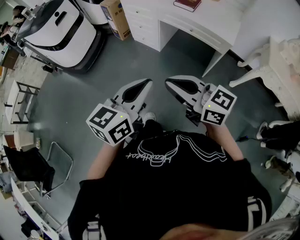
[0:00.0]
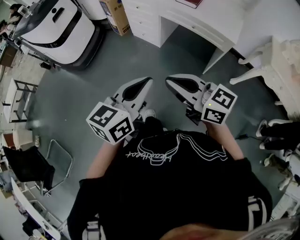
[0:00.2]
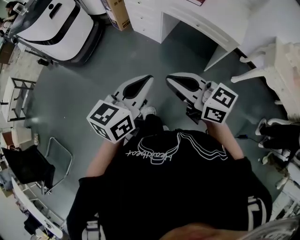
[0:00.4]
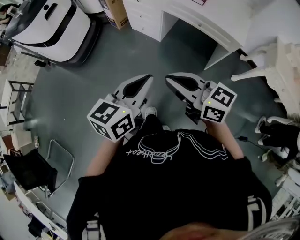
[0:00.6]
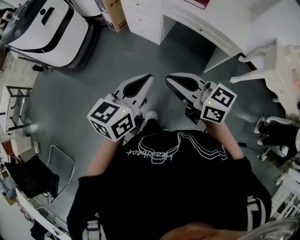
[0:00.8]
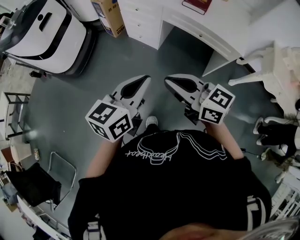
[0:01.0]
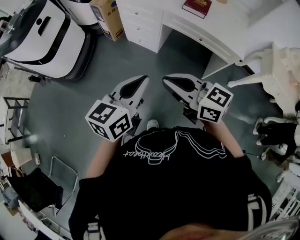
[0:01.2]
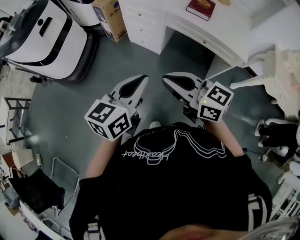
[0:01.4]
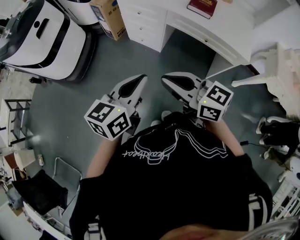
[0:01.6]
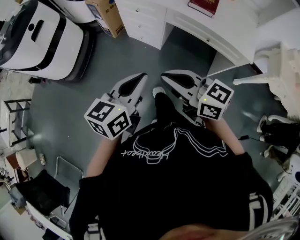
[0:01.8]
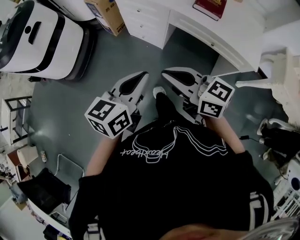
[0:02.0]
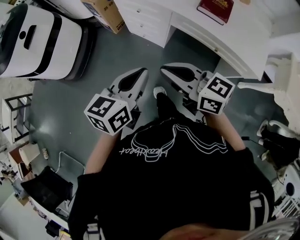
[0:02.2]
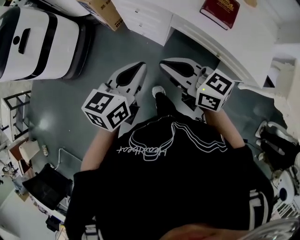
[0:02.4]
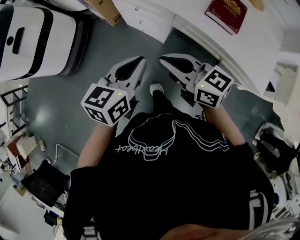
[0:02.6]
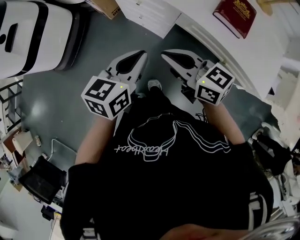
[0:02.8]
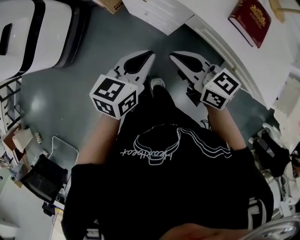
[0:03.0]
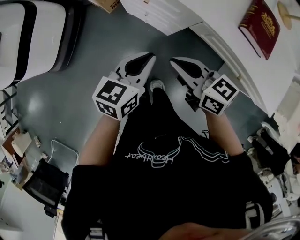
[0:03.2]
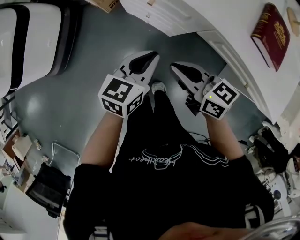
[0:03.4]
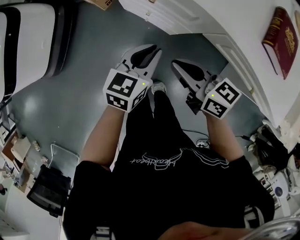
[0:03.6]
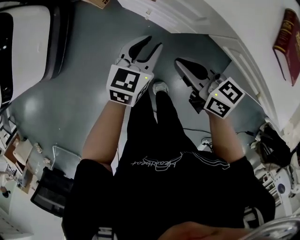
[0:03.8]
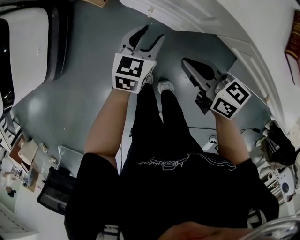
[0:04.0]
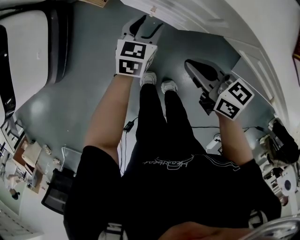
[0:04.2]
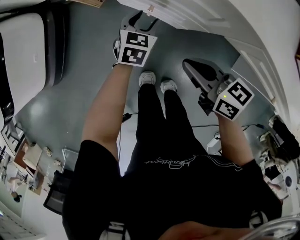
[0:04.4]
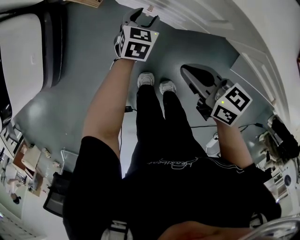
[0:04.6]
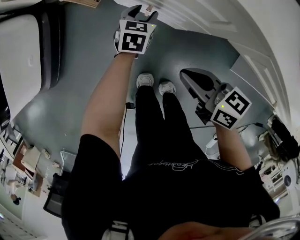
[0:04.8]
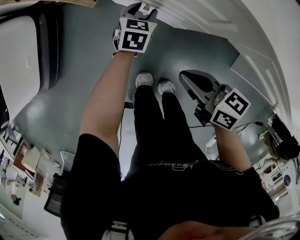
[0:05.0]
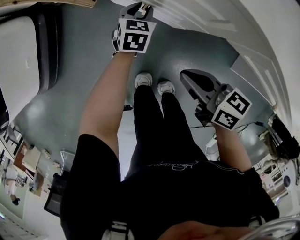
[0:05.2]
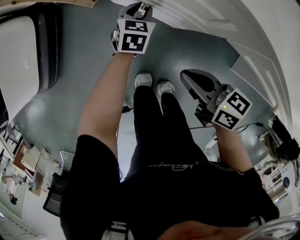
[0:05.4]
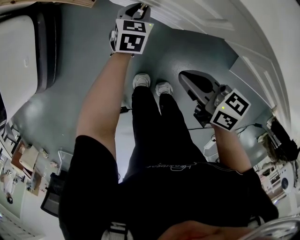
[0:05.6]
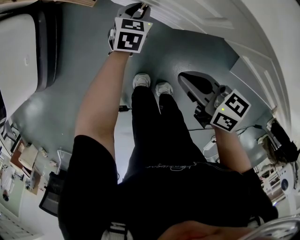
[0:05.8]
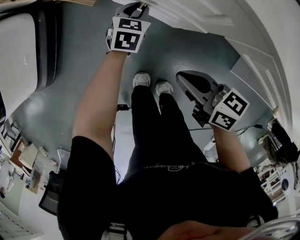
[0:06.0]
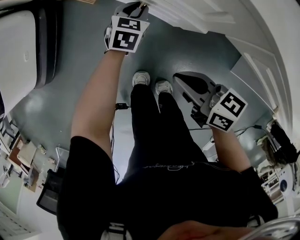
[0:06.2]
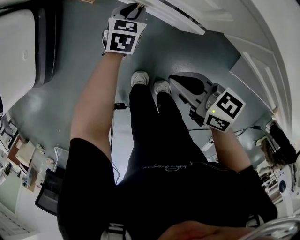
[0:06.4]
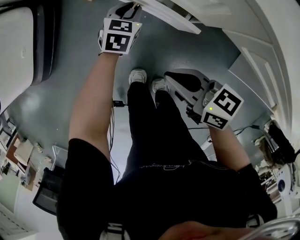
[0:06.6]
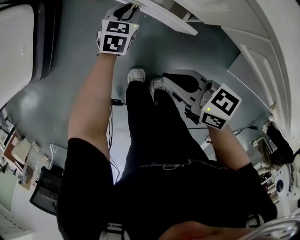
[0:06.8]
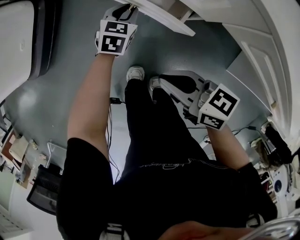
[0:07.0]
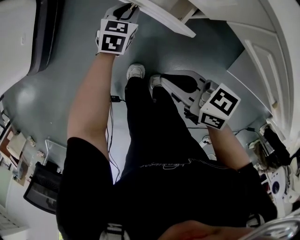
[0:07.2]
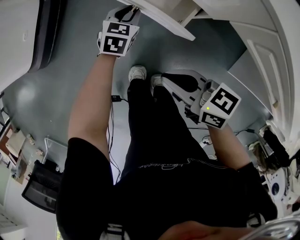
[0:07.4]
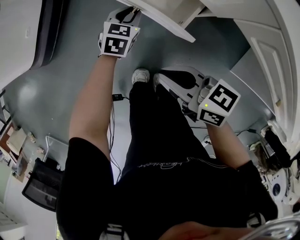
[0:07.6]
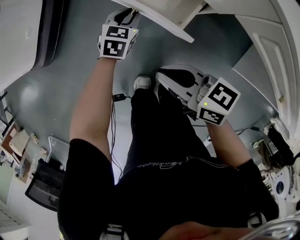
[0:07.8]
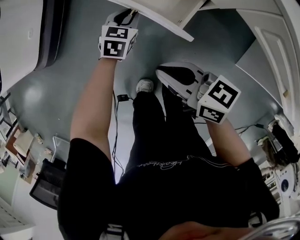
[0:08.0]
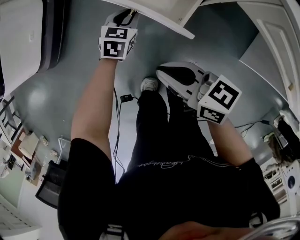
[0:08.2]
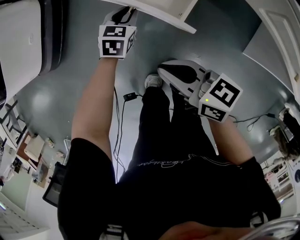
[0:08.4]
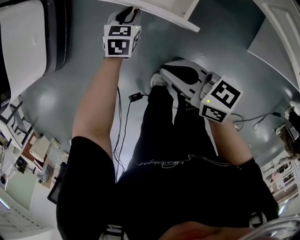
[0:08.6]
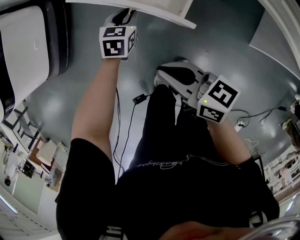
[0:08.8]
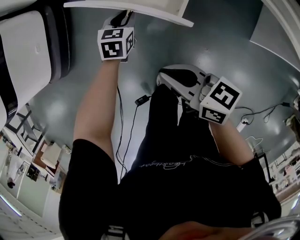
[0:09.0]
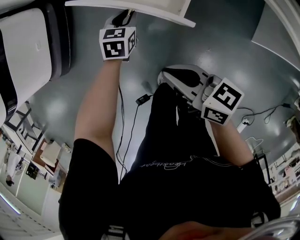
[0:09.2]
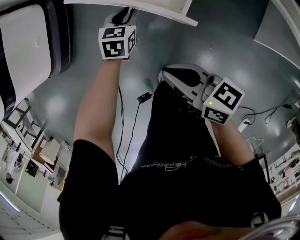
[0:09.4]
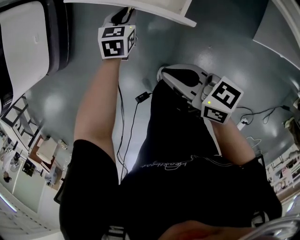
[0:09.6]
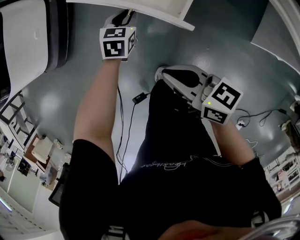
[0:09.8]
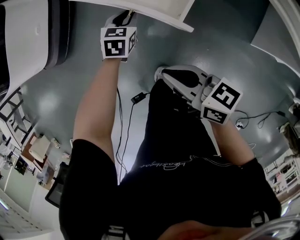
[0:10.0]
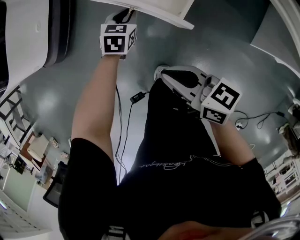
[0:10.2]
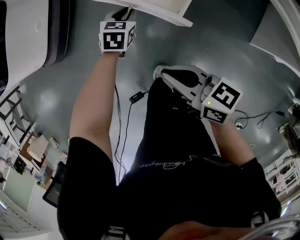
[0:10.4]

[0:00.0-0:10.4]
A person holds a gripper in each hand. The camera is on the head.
0:00.0 to 0:01.4: Both grippers travel together forward, approximately 20 cm.
0:01.4 to 0:03.0: The two grippers go some 40 cm forward and downward.
0:03.0 to 0:04.4: The right gripper is displaced downward by approximately 20 cm; the left gripper is displaced downward and forward by about 40 cm, swivels approximately 30 degrees, and opens up.
0:04.4 to 0:06.0: The left gripper ends up approximately 5 cm from where it was, and closes its fingers.
0:06.0 to 0:07.4: The right gripper moves to the left, roughly 5 cm. The left gripper shifts roughly 10 cm to the left and backward.
0:07.4 to 0:09.0: The right gripper is displaced to the left by approximately 10 cm, while the left gripper moves to the left and backward, roughly 10 cm.
0:09.0 to 0:10.4: The left gripper ends up approximately 5 cm from where it was. Meanwhile the right gripper moves backward, some 5 cm.

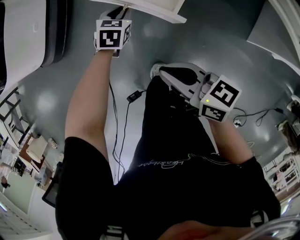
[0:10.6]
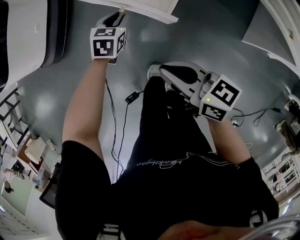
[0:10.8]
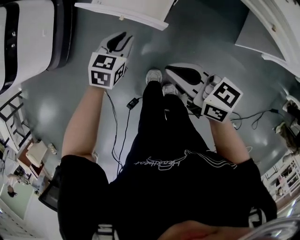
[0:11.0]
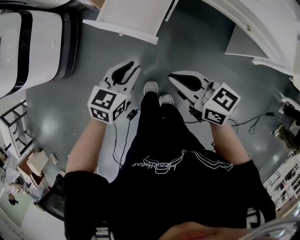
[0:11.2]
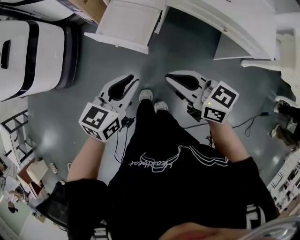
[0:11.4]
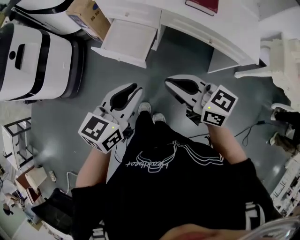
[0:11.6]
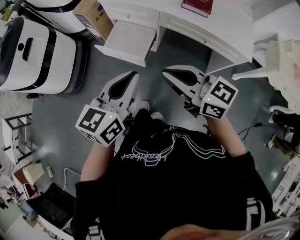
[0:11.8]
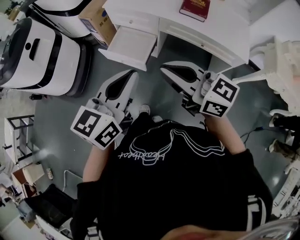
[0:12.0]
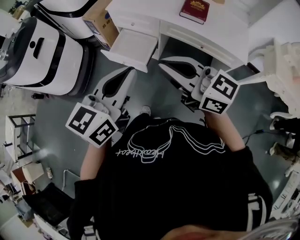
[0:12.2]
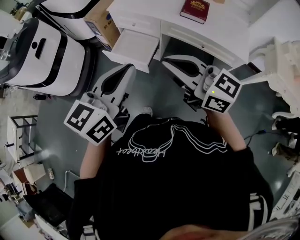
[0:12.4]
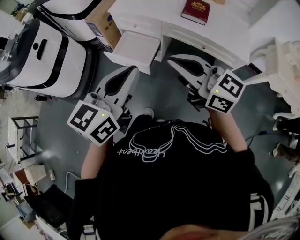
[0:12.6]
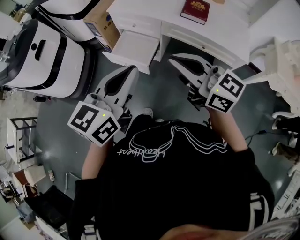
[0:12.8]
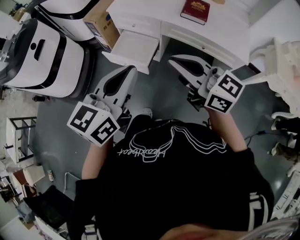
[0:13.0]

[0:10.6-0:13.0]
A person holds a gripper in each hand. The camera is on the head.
0:10.6 to 0:11.8: The left gripper moves upward and backward, about 60 cm, and points its fingers approximately 40 degrees further upward. Meanwhile the right gripper travels upward by some 40 cm, and rotates roughly 30 degrees.
0:11.8 to 0:13.0: The two grippers go about 5 cm upward.

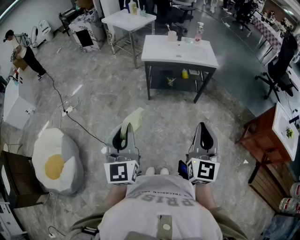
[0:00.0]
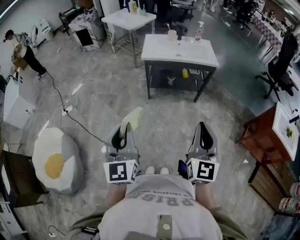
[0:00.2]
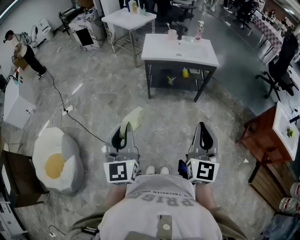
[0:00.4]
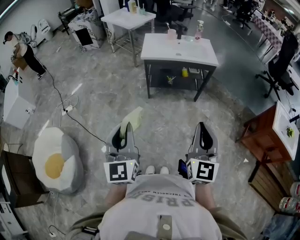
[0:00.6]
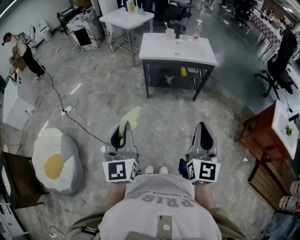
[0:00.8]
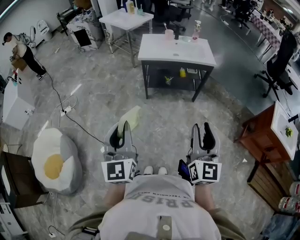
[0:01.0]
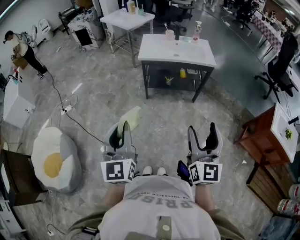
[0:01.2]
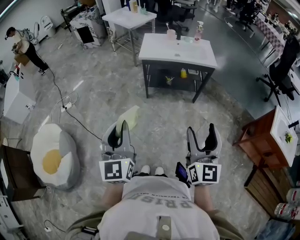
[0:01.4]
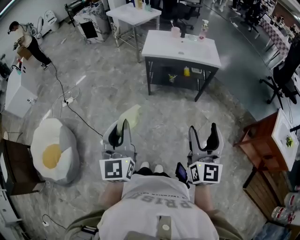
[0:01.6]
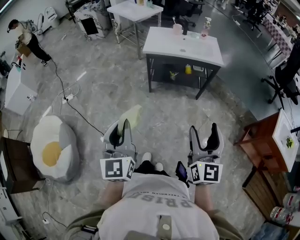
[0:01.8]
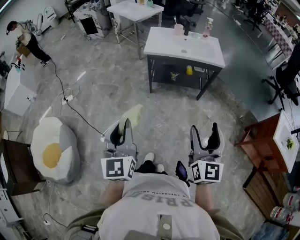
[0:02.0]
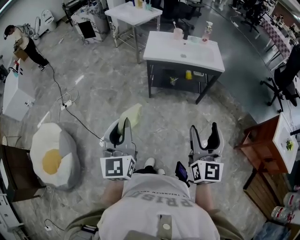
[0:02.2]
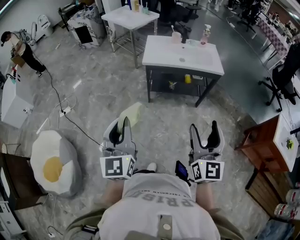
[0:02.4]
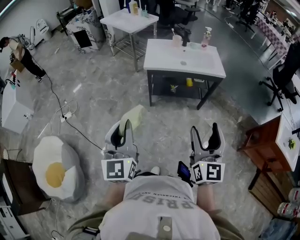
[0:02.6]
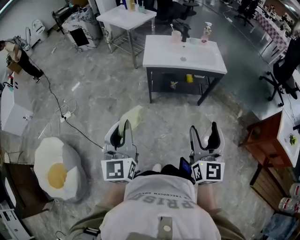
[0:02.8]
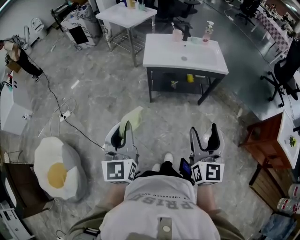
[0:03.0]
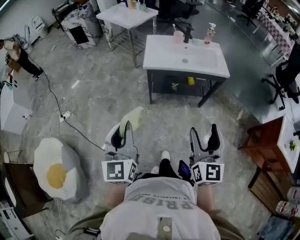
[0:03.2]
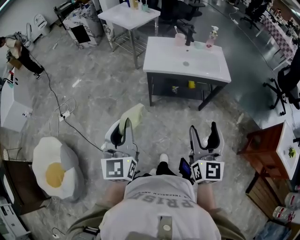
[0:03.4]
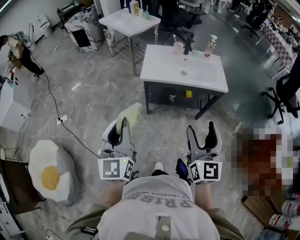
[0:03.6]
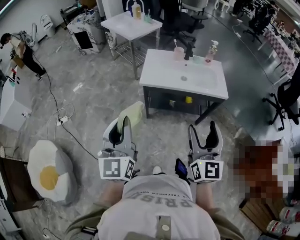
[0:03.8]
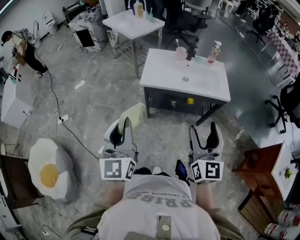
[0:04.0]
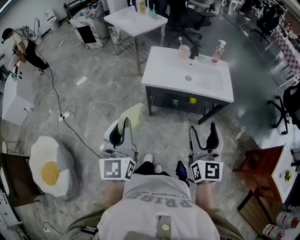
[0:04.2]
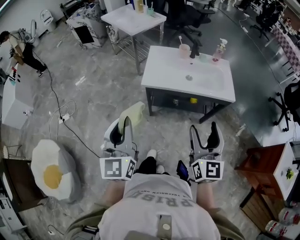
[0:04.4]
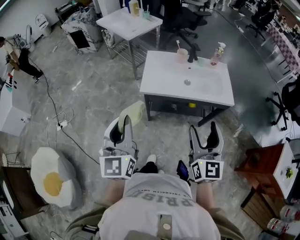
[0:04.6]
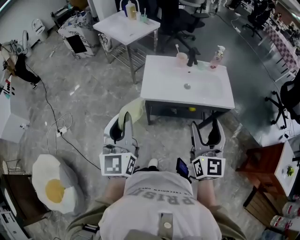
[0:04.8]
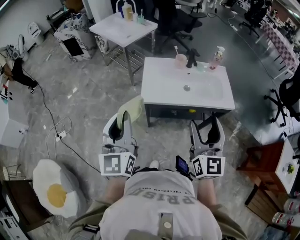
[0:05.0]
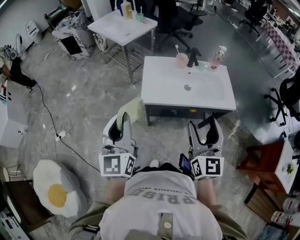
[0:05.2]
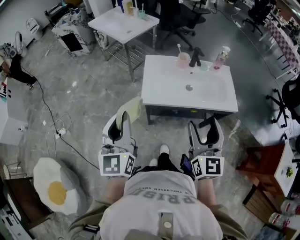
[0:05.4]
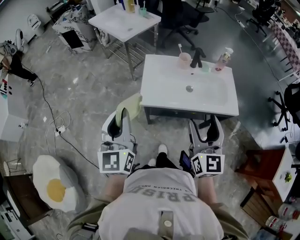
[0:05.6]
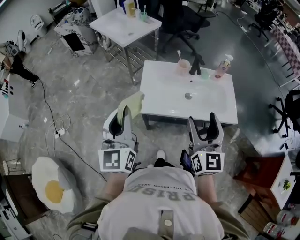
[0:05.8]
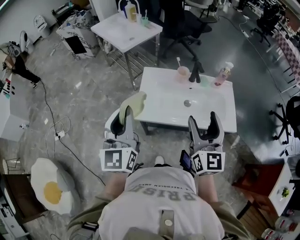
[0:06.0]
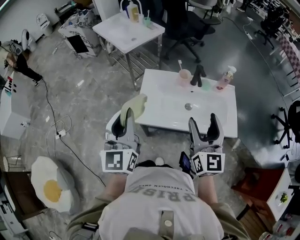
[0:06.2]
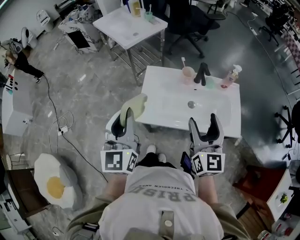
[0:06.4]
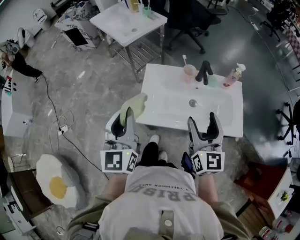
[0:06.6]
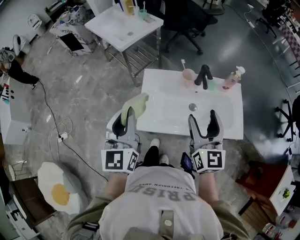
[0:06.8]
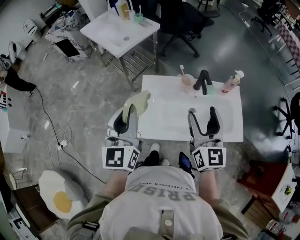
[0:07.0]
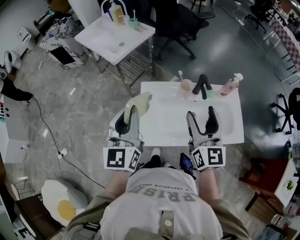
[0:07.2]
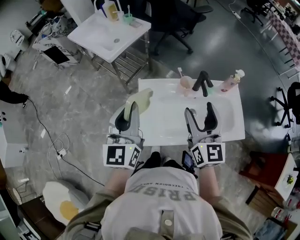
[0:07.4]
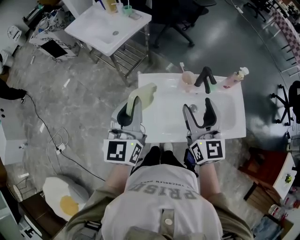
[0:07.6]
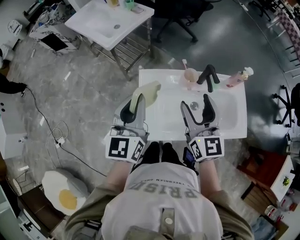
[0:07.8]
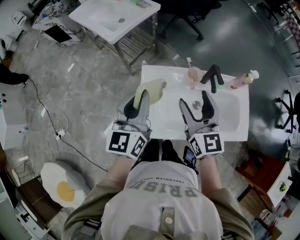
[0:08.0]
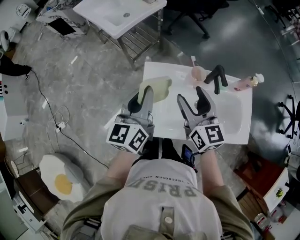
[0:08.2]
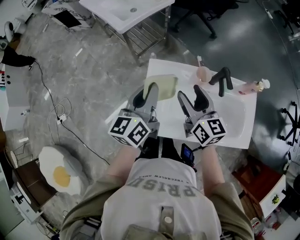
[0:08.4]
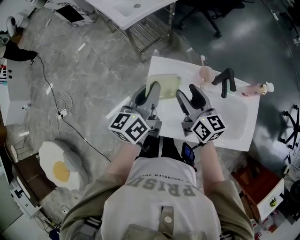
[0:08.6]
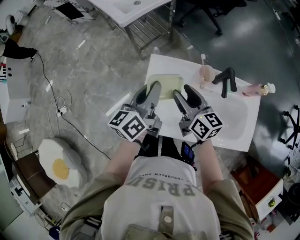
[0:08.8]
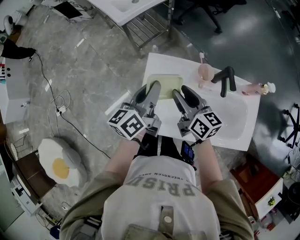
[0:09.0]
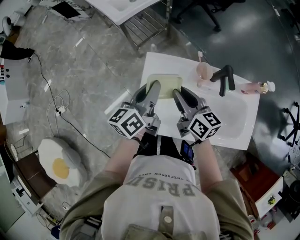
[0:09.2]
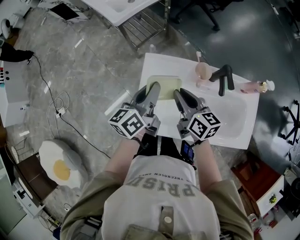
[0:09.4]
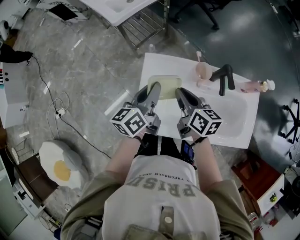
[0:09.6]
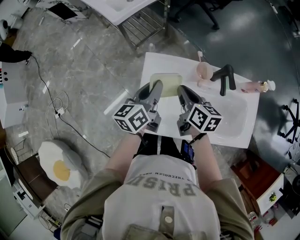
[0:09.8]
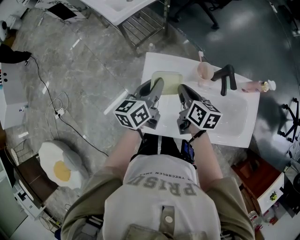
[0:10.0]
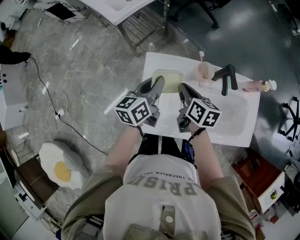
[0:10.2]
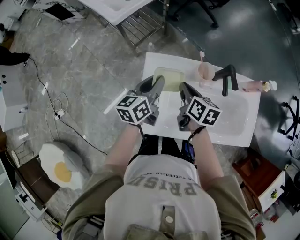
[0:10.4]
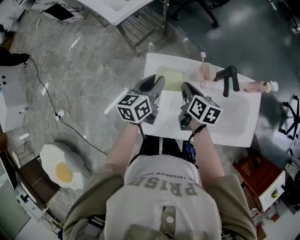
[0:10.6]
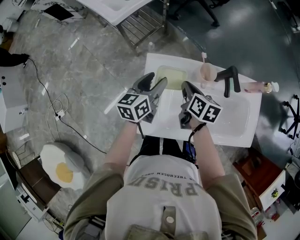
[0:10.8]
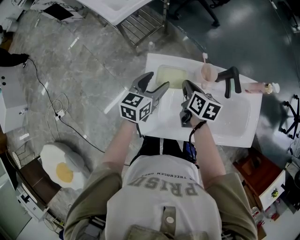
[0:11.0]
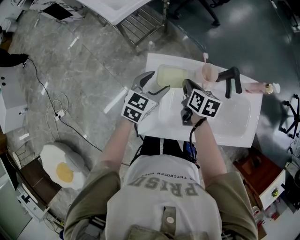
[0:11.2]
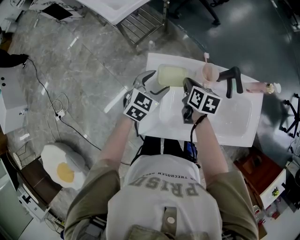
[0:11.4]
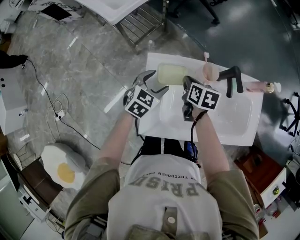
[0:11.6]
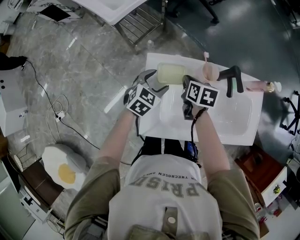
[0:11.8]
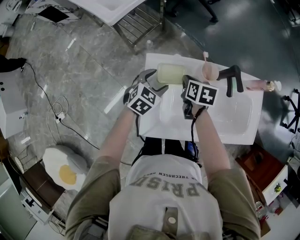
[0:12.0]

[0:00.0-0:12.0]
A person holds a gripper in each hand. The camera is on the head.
0:00.0 to 0:01.6: The right gripper opens up.
0:01.6 to 0:03.0: Both grippers travel together forward and to the left, about 15 cm.
0:03.0 to 0:04.4: Both grippers move forward, some 20 cm.
0:04.4 to 0:06.0: Both grippers move forward, about 25 cm.
0:06.0 to 0:07.6: The two grippers go roughly 20 cm forward.
0:07.6 to 0:09.0: The right gripper shifts about 15 cm downward and forward, swivels roughly 50 degrees, and closes, while the left gripper heads downward, covering roughly 15 cm, and rotates approximately 40 degrees.
0:09.0 to 0:10.4: Both grippers move downward, some 5 cm. The right gripper changes its angle by about 30 degrees, and closes up.
0:10.4 to 0:12.0: The left gripper moves downward, roughly 10 cm, twists roughly 50 degrees clockwise, seen from behind, and opens up. Meanwhile the right gripper heads downward, covering about 5 cm.
